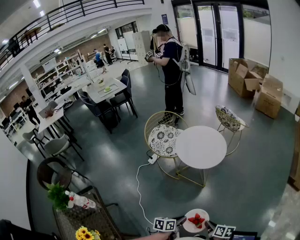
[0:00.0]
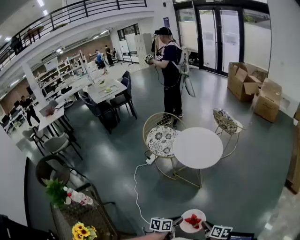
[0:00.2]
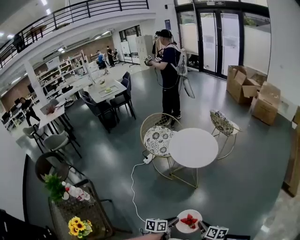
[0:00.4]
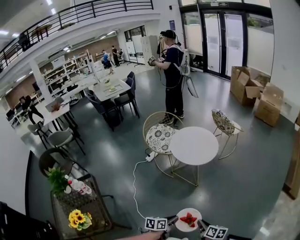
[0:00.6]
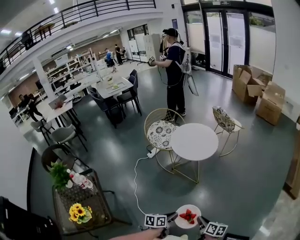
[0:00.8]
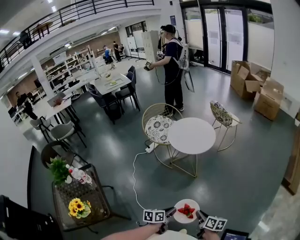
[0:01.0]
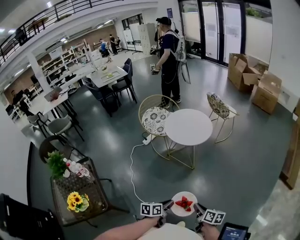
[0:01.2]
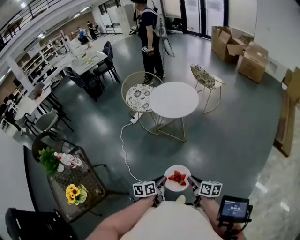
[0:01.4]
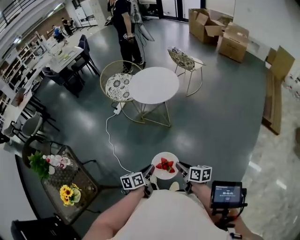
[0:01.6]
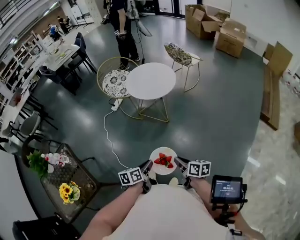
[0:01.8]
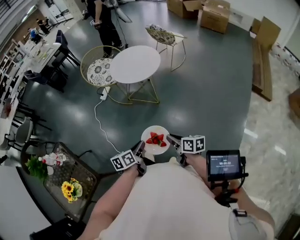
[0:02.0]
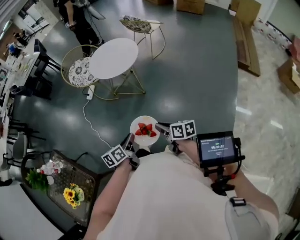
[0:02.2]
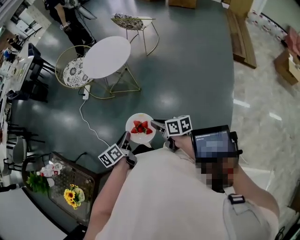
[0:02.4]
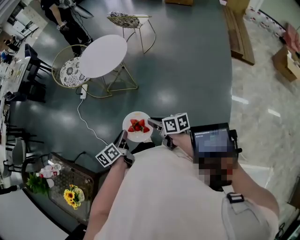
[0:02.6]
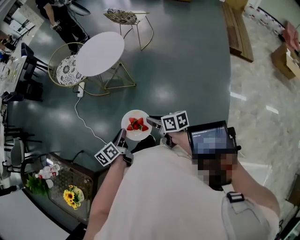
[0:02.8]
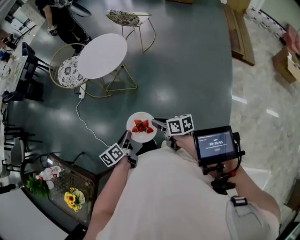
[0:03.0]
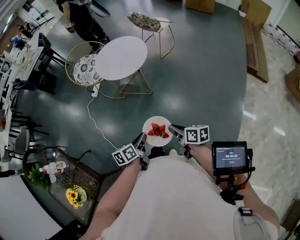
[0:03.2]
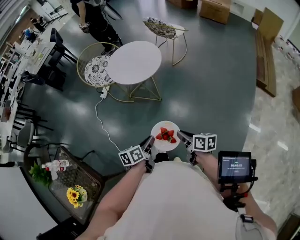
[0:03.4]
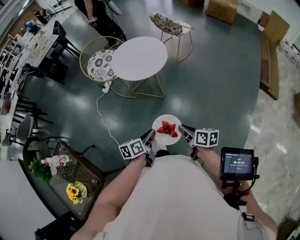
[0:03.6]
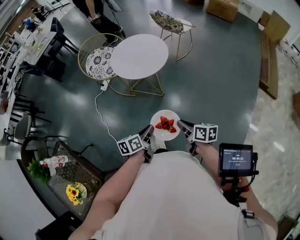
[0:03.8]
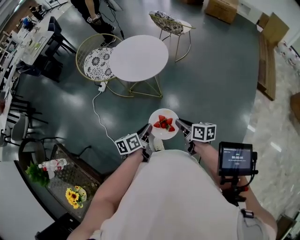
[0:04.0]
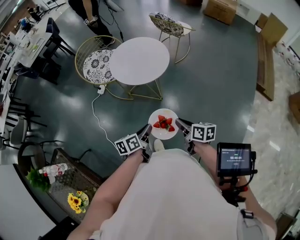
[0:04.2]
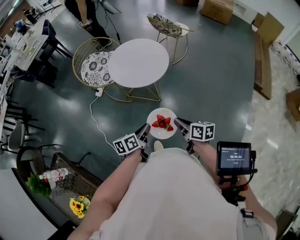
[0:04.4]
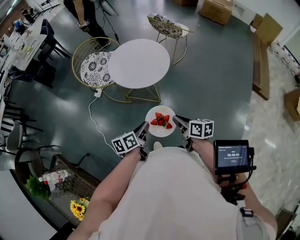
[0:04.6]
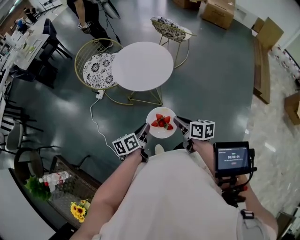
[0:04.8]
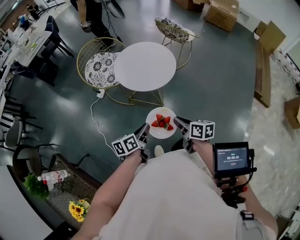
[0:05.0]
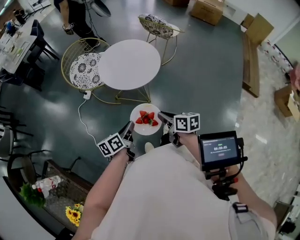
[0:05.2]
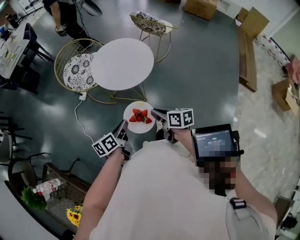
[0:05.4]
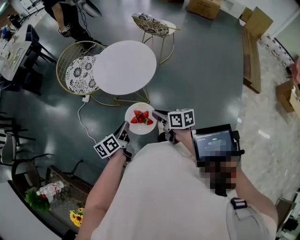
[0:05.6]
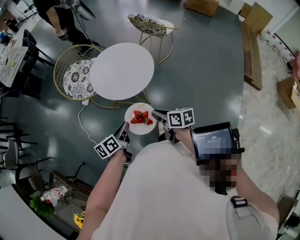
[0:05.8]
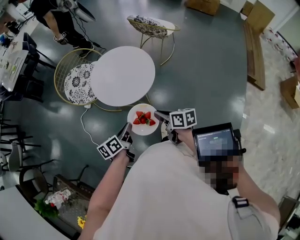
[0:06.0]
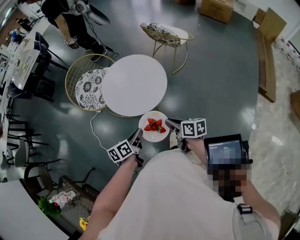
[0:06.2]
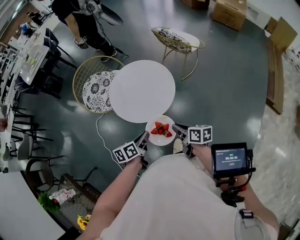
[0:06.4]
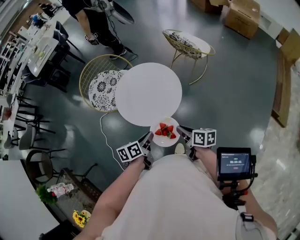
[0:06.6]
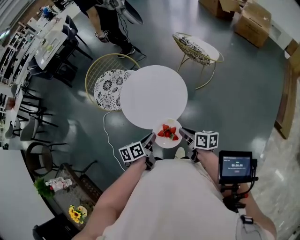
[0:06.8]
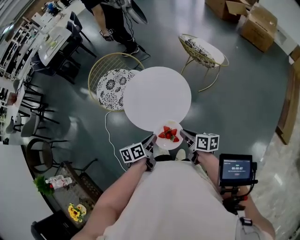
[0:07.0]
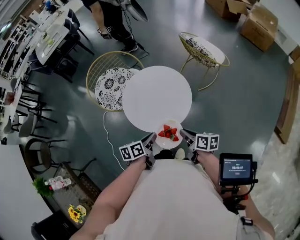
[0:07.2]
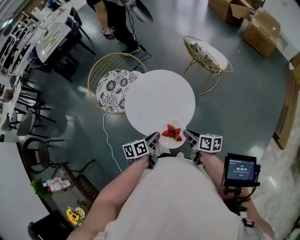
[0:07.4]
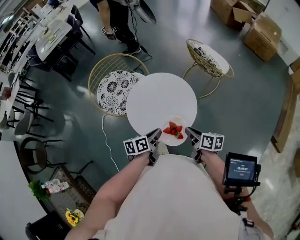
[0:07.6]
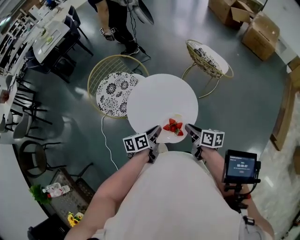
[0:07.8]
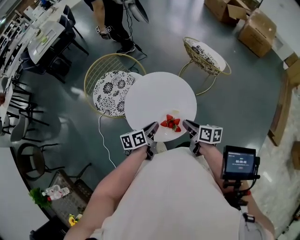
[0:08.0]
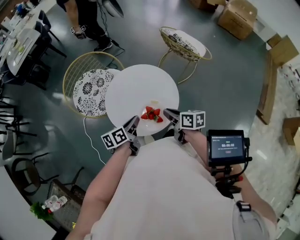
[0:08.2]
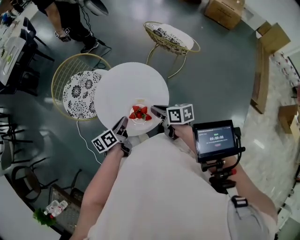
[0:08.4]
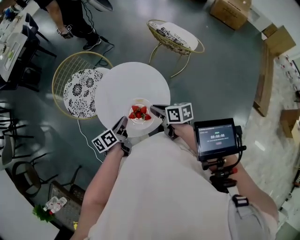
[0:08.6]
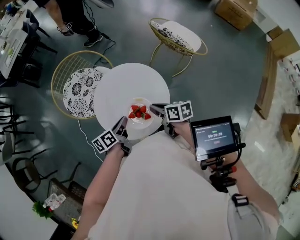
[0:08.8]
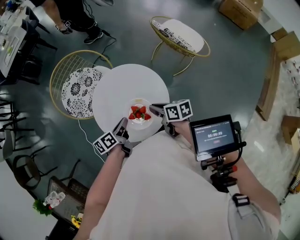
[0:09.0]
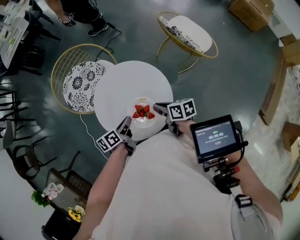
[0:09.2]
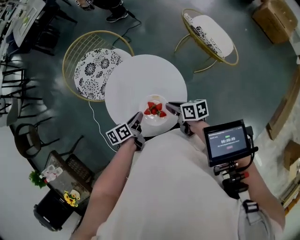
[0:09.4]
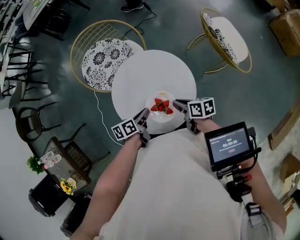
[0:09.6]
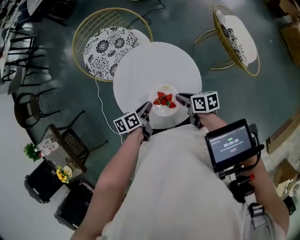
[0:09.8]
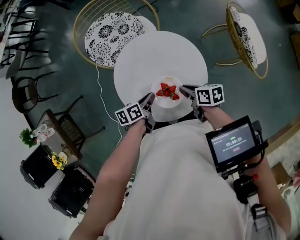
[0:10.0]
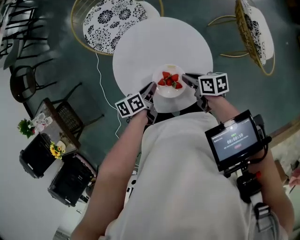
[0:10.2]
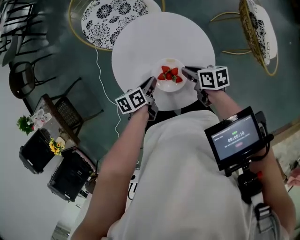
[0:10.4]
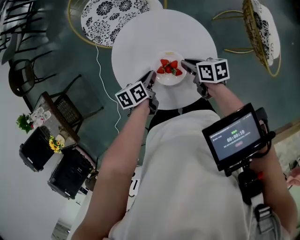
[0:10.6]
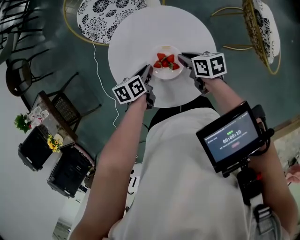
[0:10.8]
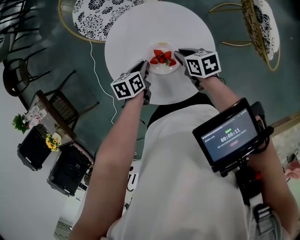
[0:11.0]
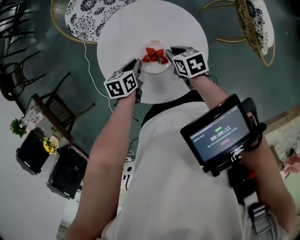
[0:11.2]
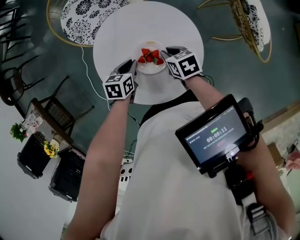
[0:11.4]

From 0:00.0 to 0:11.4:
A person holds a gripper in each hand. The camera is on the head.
From 0:00.0 to 0:01.4: The two grippers go roughly 15 cm backward and to the right.
From 0:01.4 to 0:02.8: There are only small adjustments of the grippers.
From 0:02.8 to 0:04.2: Both grippers travel together forward, some 15 cm.
From 0:04.2 to 0:05.6: Both grippers travel together forward and to the left, roughly 15 cm.
From 0:05.6 to 0:07.2: The two grippers go roughly 25 cm forward and to the right.
From 0:07.2 to 0:08.6: The two grippers go about 10 cm forward.
From 0:08.6 to 0:10.0: The left gripper goes about 10 cm downward, and swivels approximately 30 degrees; the right gripper ends up approximately 20 cm from where it was, and changes its angle by roughly 40 degrees.
From 0:10.0 to 0:11.4: The right gripper moves about 5 cm, and turns by about 30 degrees; the left gripper changes place by roughly 5 cm, and swivels about 30 degrees.

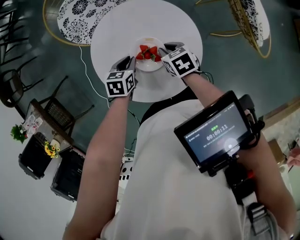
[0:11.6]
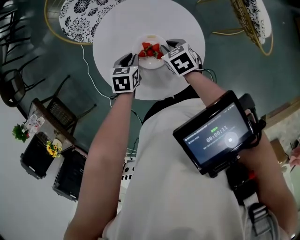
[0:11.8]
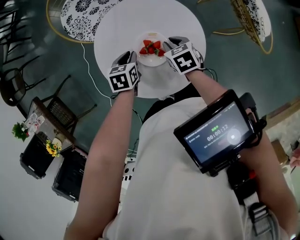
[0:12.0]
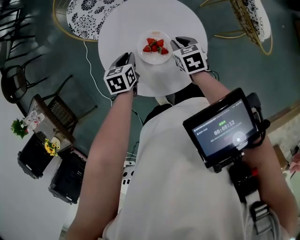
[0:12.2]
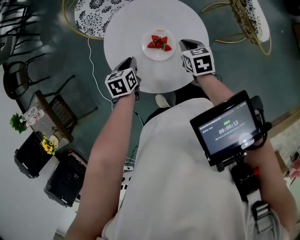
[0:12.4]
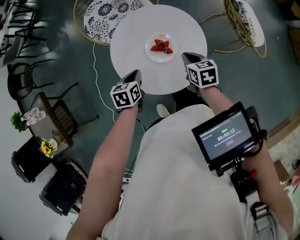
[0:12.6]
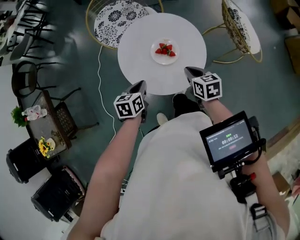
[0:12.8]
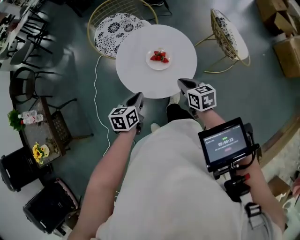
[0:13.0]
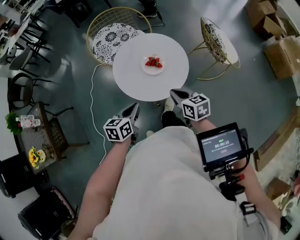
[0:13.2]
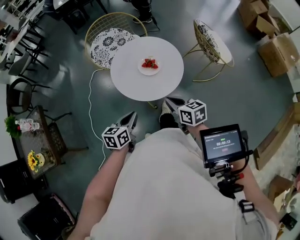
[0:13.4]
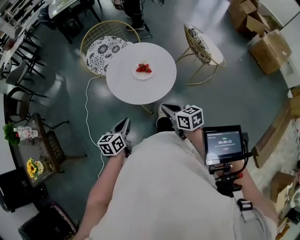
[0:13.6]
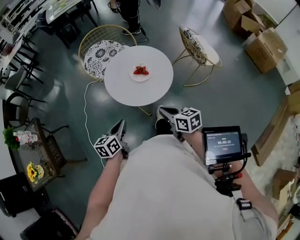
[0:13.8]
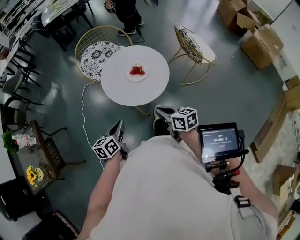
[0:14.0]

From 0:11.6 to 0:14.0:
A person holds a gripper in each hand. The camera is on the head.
From 0:11.6 to 0:12.8: Both grippers travel together backward and upward, some 20 cm. The right gripper rotates some 20 degrees.
From 0:12.8 to 0:14.0: Both grippers move backward and upward, approximately 25 cm. The left gripper turns by about 20 degrees.

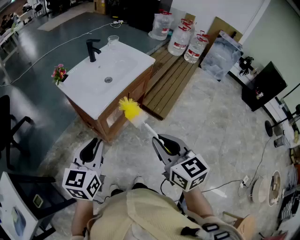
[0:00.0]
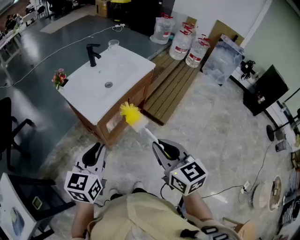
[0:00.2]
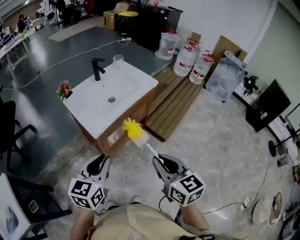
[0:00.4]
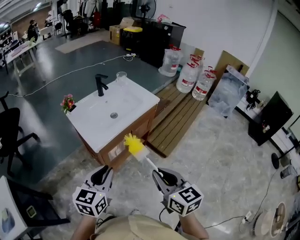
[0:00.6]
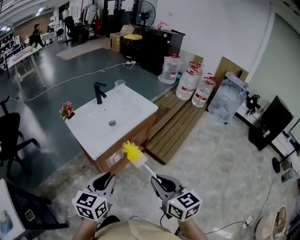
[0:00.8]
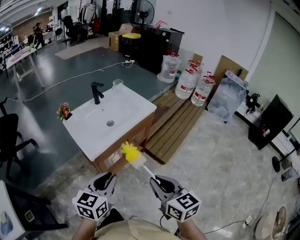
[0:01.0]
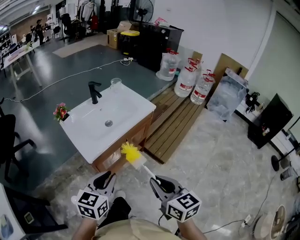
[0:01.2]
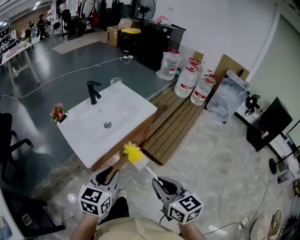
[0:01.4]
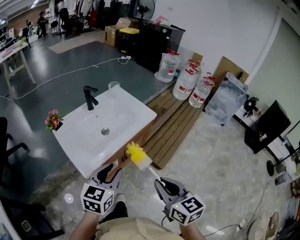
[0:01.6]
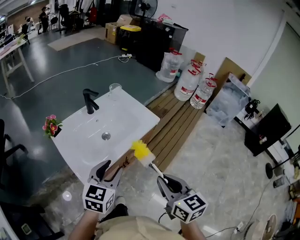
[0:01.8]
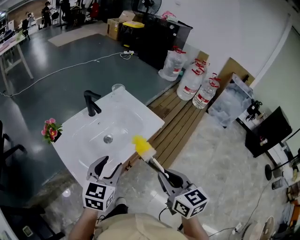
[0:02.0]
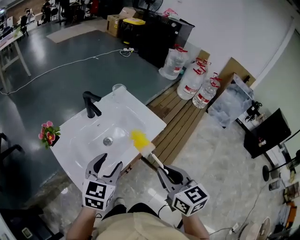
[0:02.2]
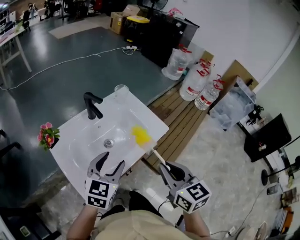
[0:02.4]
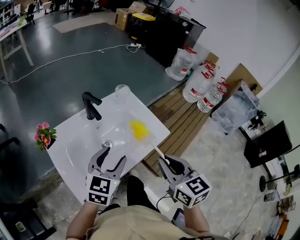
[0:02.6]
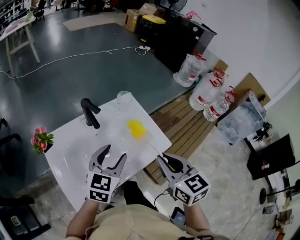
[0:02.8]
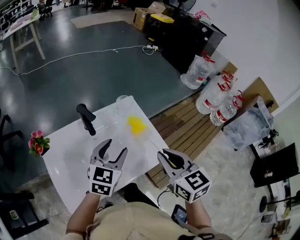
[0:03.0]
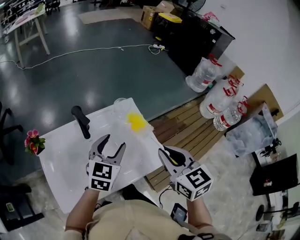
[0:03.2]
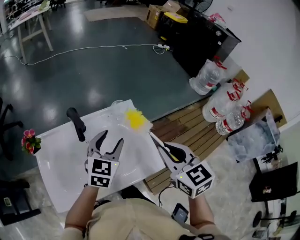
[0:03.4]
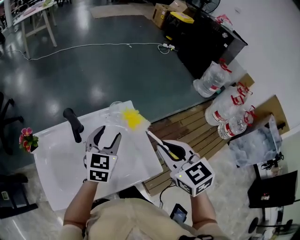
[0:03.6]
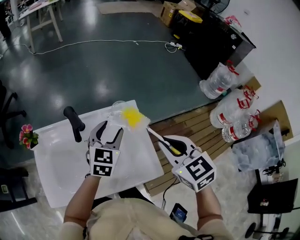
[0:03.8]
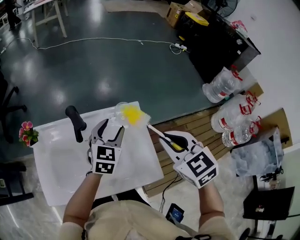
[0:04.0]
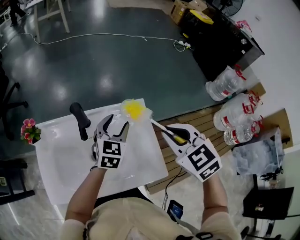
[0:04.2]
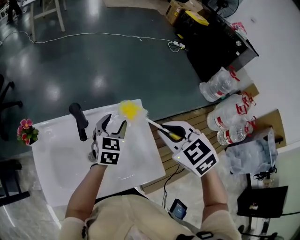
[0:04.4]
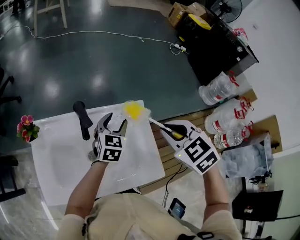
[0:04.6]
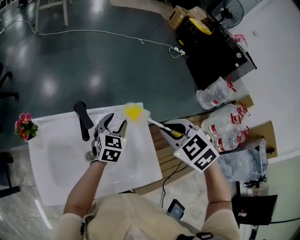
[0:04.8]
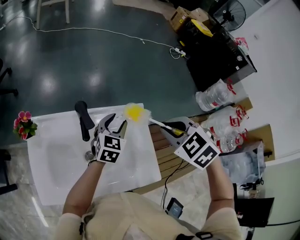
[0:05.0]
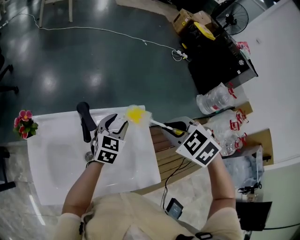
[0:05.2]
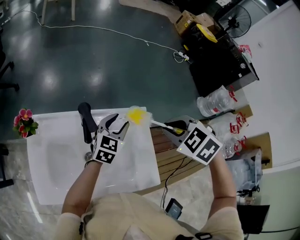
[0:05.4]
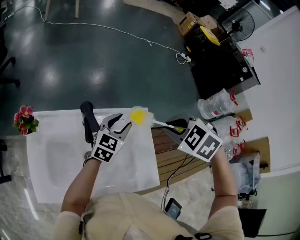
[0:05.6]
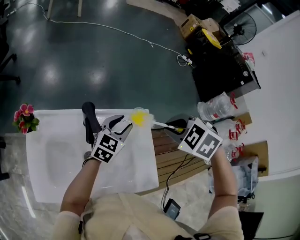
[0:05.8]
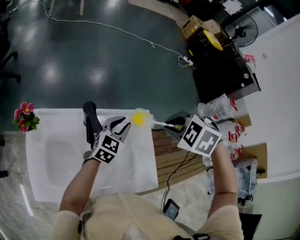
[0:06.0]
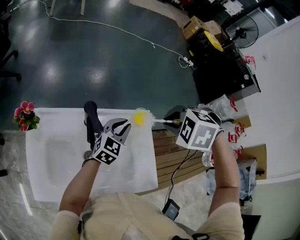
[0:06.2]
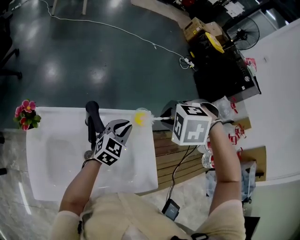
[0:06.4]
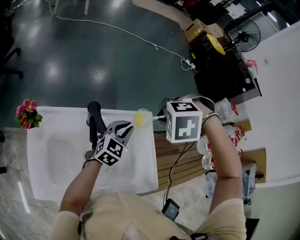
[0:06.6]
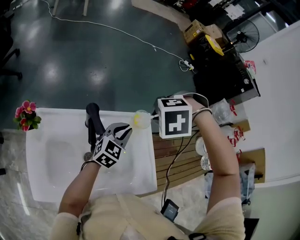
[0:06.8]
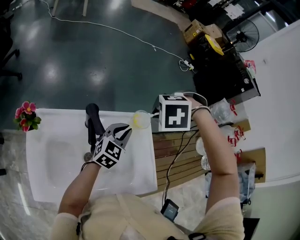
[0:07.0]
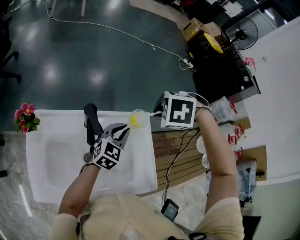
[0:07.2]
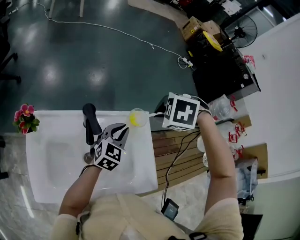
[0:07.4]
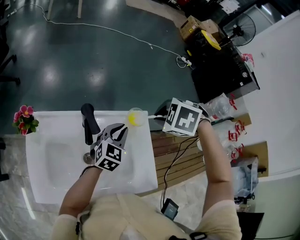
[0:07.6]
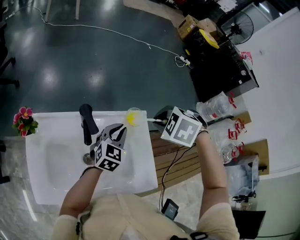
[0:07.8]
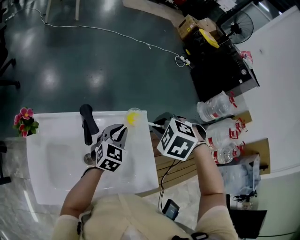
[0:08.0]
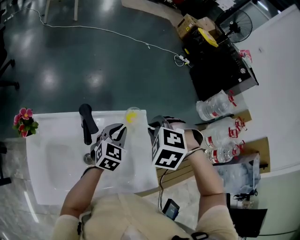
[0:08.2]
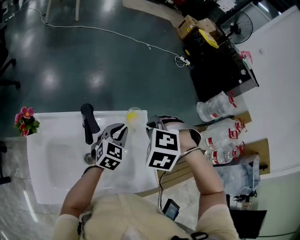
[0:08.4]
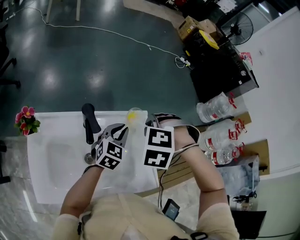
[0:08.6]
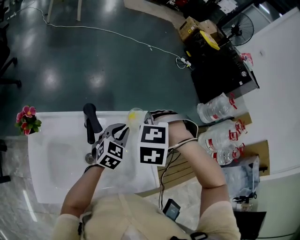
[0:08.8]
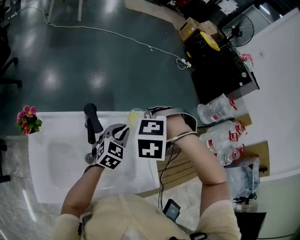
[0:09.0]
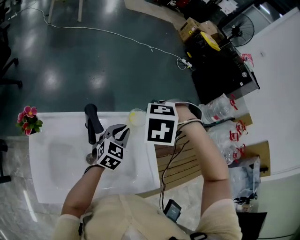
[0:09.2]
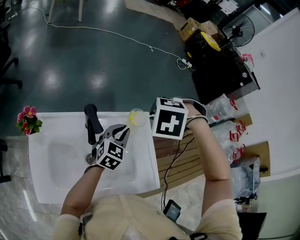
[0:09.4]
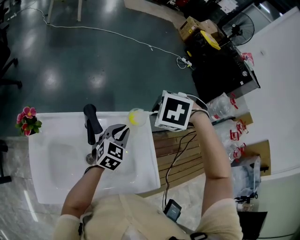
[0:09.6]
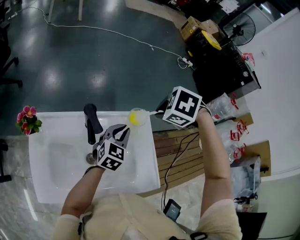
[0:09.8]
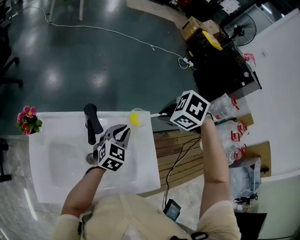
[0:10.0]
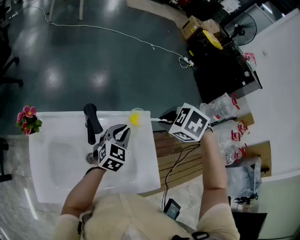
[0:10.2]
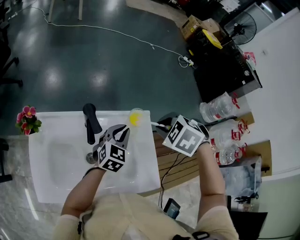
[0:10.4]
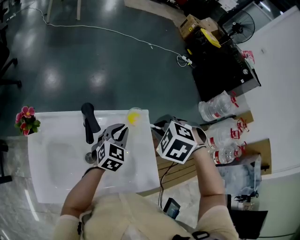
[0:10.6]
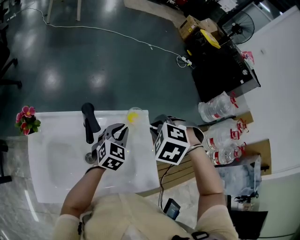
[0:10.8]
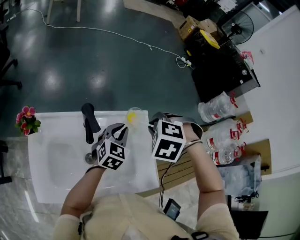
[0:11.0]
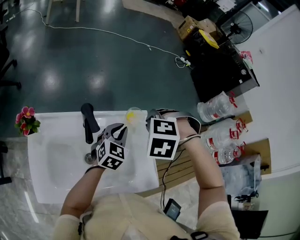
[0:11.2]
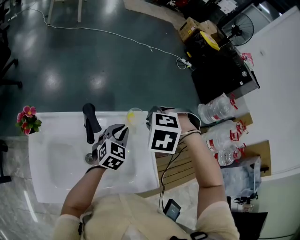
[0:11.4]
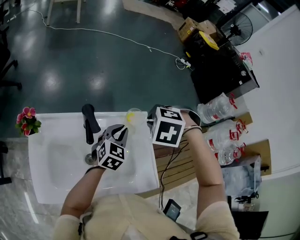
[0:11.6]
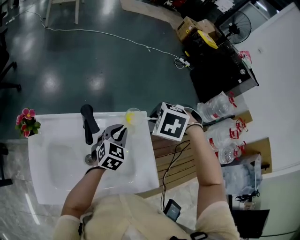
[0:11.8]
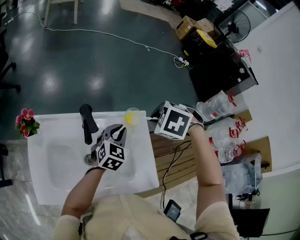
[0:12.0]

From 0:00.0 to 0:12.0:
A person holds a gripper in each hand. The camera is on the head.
From 0:00.0 to 0:01.6: The left gripper moves some 20 cm.
From 0:01.6 to 0:03.0: The left gripper moves roughly 35 cm, and opens up.
From 0:03.0 to 0:04.4: The left gripper ends up approximately 20 cm from where it was, and rotates approximately 20 degrees.
From 0:04.4 to 0:06.0: The left gripper closes up.
